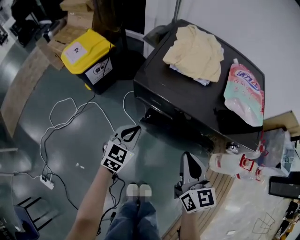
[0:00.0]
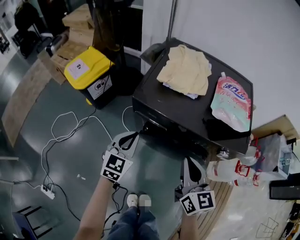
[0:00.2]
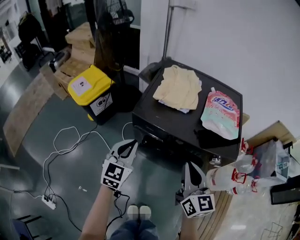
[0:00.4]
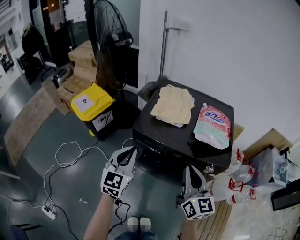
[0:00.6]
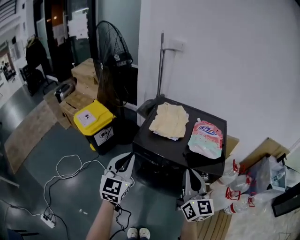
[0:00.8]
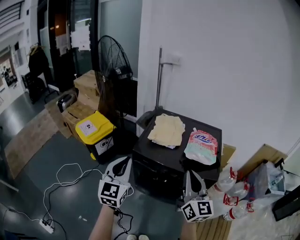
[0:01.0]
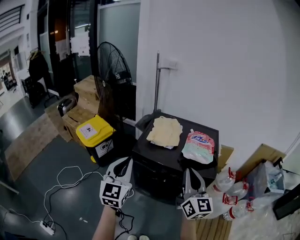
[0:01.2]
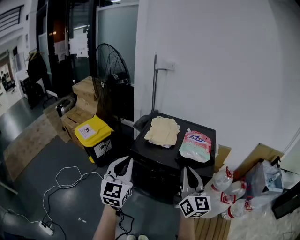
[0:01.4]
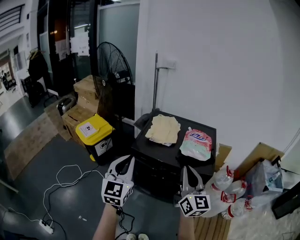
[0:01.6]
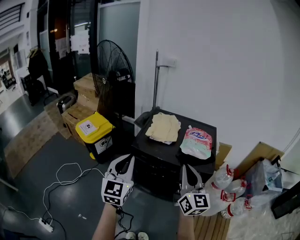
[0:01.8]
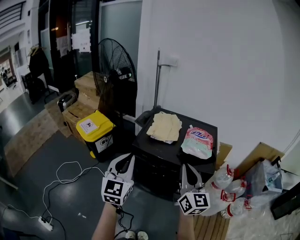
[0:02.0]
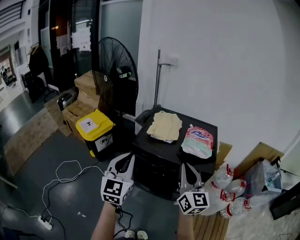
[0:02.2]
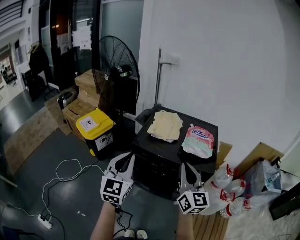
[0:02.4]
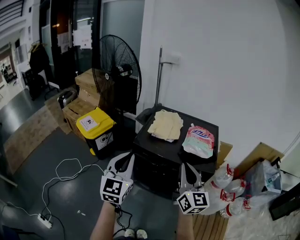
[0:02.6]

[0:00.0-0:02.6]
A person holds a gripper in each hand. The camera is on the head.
0:00.0 to 0:01.2: The two grippers go some 35 cm upward. The right gripper turns by approximately 30 degrees. Meanwhile the left gripper changes its angle by roughly 30 degrees.
0:01.2 to 0:02.6: The grippers move only a little.

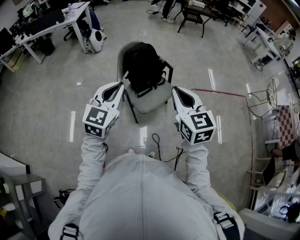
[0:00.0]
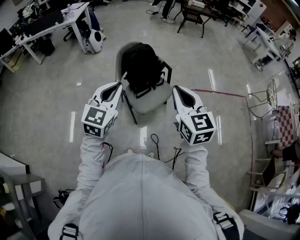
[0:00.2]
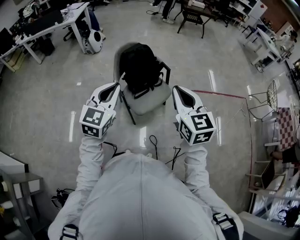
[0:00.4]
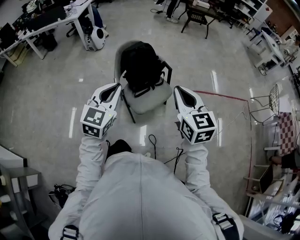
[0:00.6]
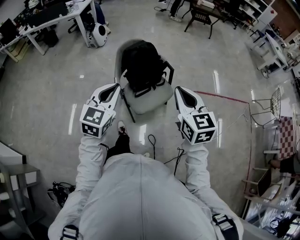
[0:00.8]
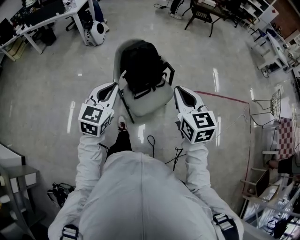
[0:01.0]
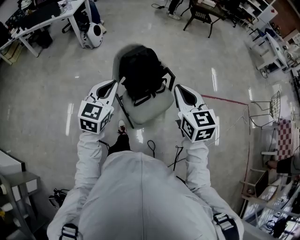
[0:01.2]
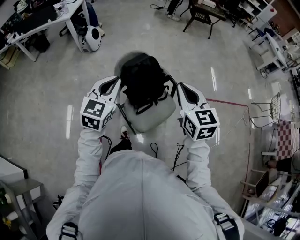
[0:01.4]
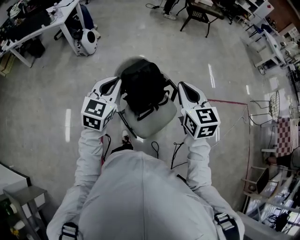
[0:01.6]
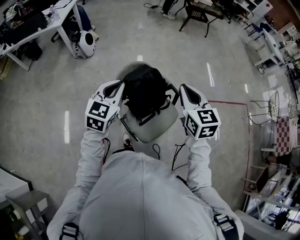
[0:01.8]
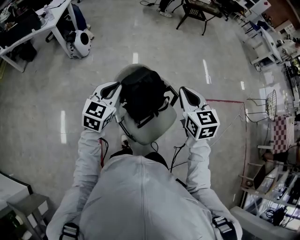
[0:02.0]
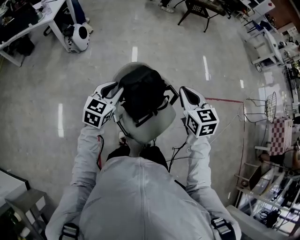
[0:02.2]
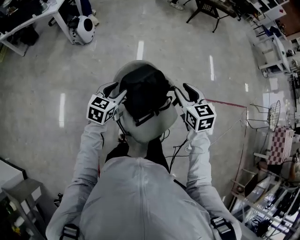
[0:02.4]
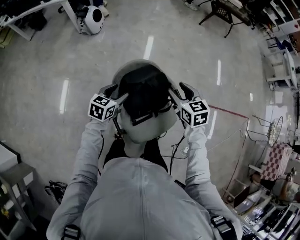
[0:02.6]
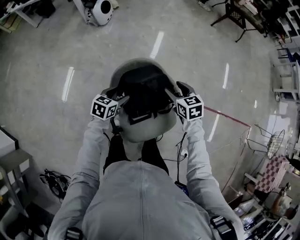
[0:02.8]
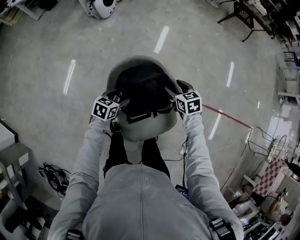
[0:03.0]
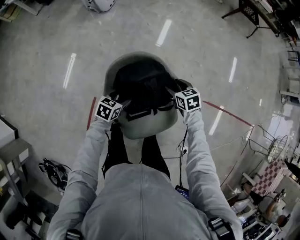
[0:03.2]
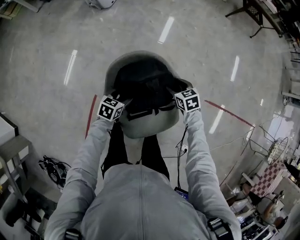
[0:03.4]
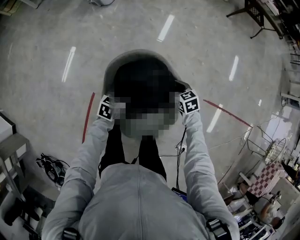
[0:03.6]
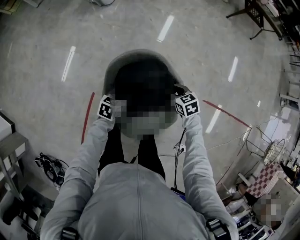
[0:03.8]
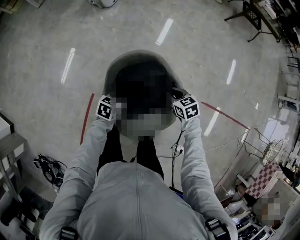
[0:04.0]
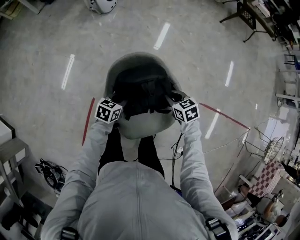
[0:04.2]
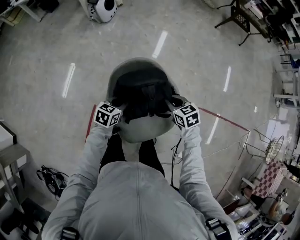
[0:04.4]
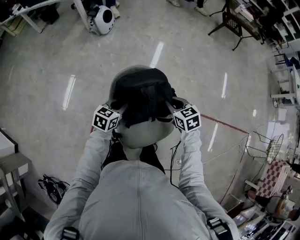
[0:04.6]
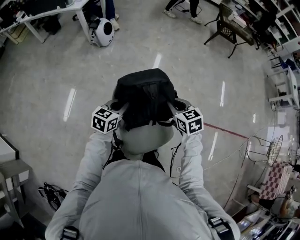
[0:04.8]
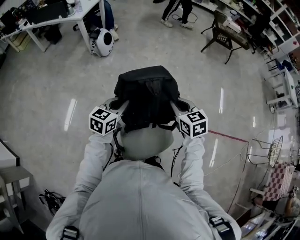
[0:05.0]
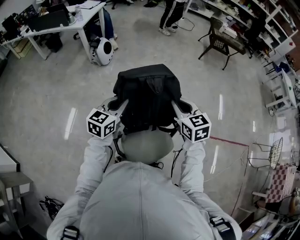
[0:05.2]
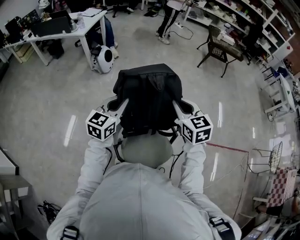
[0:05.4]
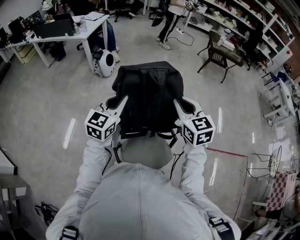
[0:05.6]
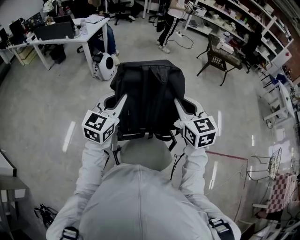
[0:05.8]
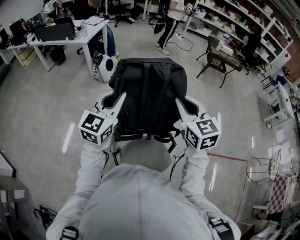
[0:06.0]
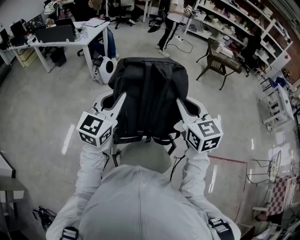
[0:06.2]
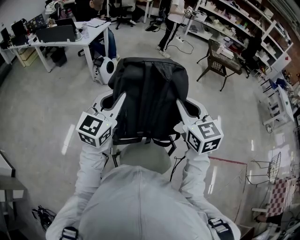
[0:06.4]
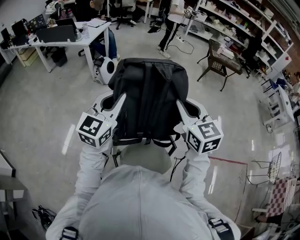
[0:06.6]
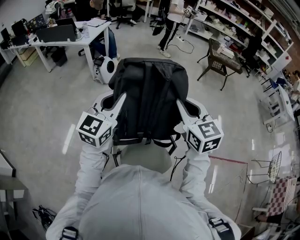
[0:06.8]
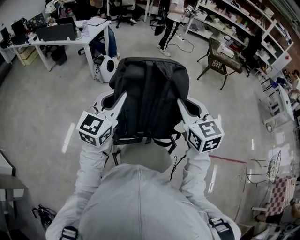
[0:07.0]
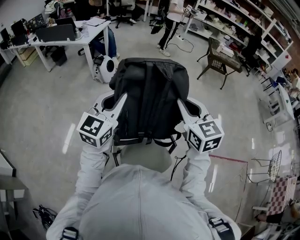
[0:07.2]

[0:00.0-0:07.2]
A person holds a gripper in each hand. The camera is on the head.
0:00.0 to 0:01.4: Both grippers move forward, about 20 cm.
0:01.4 to 0:02.8: Both grippers travel together downward and forward, roughly 35 cm. The left gripper swivels some 40 degrees, and opens its fingers. Meanwhile the right gripper changes its angle by some 30 degrees, and opens up.
0:02.8 to 0:04.4: The left gripper travels downward and back again, about 10 cm each way, and closes up; the right gripper reaches approximately 15 cm downward, then returns, and closes.
0:04.4 to 0:05.8: Both grippers move upward, approximately 35 cm. The right gripper angles its fingers upward, by roughly 30 degrees. Meanwhile the left gripper points its fingers roughly 40 degrees further upward.
0:05.8 to 0:07.2: The grippers make only small movements.

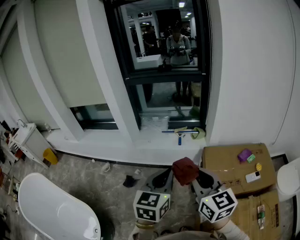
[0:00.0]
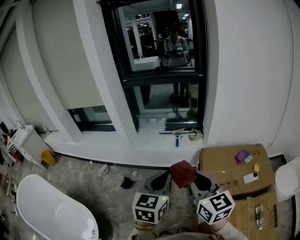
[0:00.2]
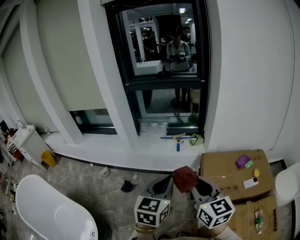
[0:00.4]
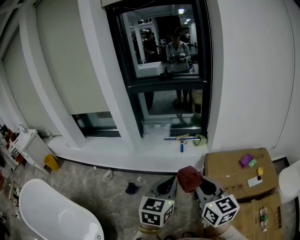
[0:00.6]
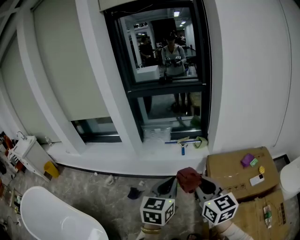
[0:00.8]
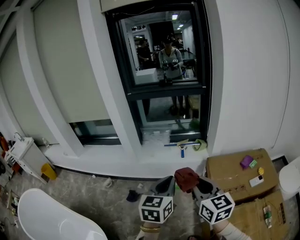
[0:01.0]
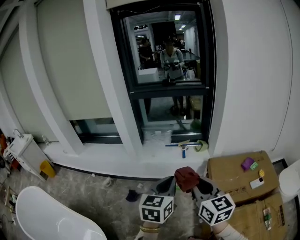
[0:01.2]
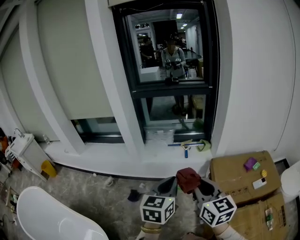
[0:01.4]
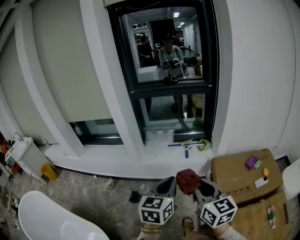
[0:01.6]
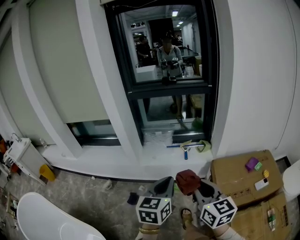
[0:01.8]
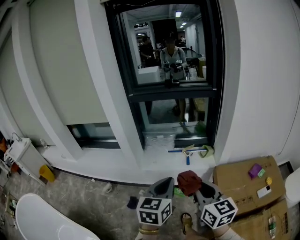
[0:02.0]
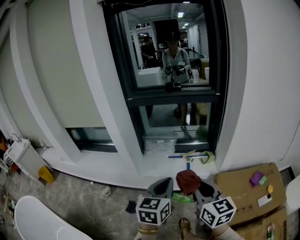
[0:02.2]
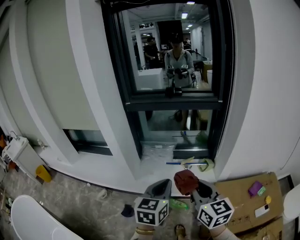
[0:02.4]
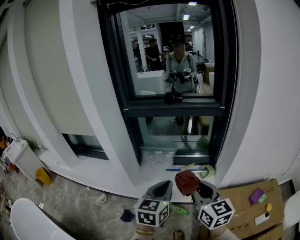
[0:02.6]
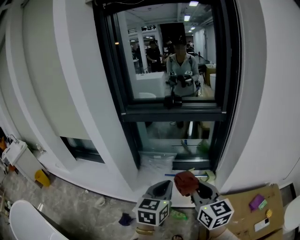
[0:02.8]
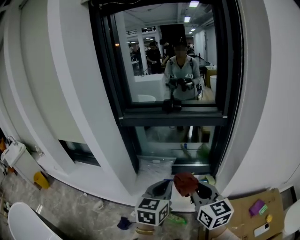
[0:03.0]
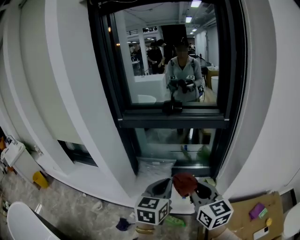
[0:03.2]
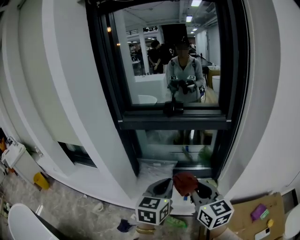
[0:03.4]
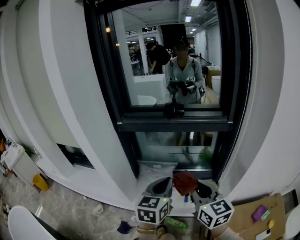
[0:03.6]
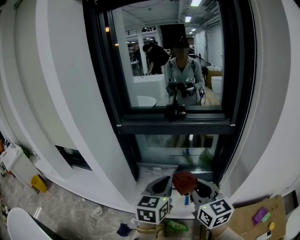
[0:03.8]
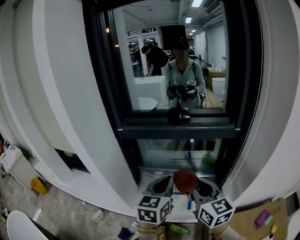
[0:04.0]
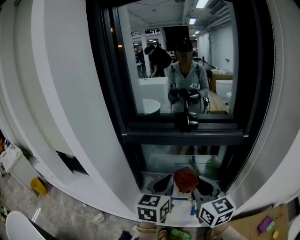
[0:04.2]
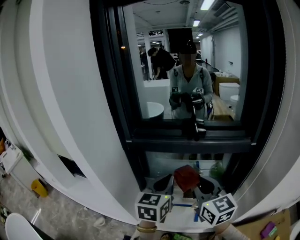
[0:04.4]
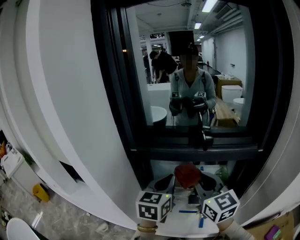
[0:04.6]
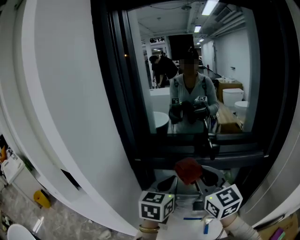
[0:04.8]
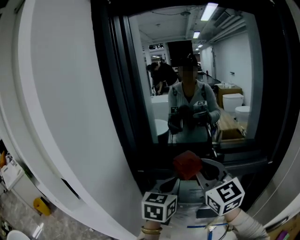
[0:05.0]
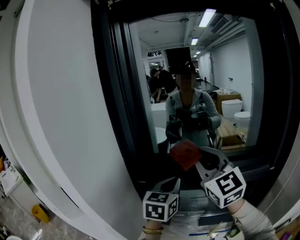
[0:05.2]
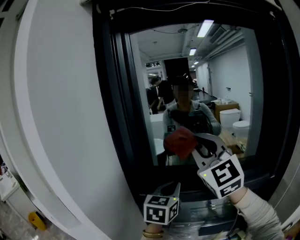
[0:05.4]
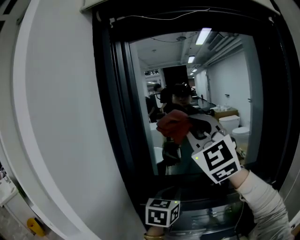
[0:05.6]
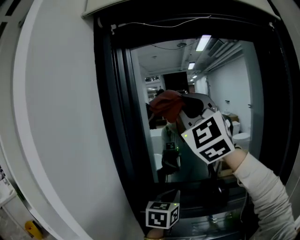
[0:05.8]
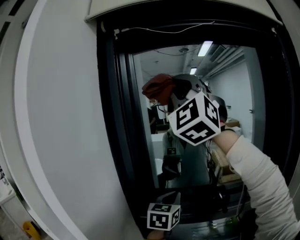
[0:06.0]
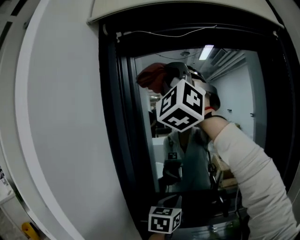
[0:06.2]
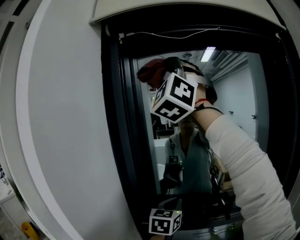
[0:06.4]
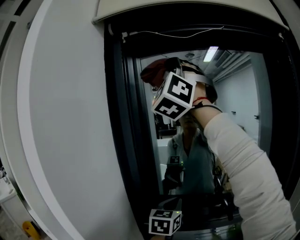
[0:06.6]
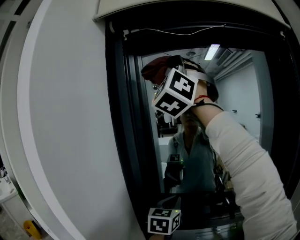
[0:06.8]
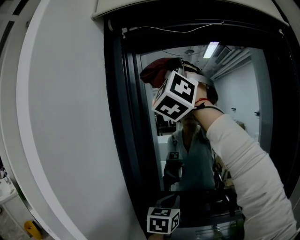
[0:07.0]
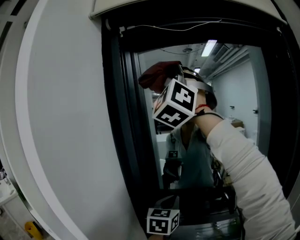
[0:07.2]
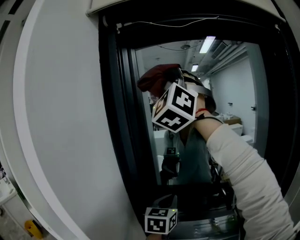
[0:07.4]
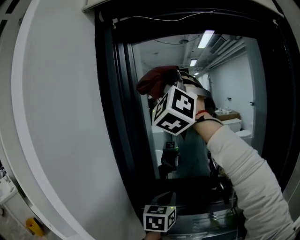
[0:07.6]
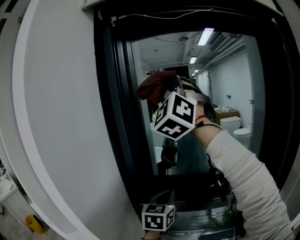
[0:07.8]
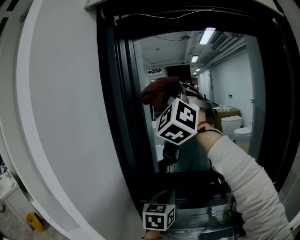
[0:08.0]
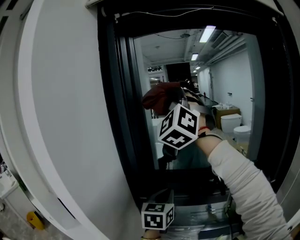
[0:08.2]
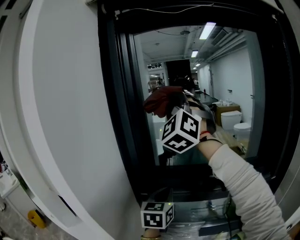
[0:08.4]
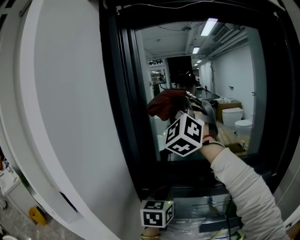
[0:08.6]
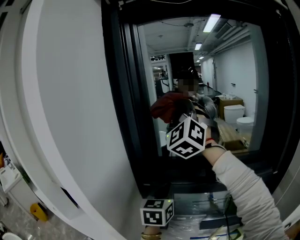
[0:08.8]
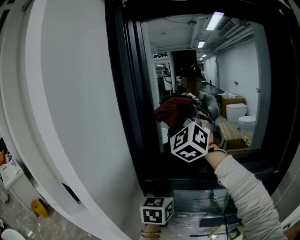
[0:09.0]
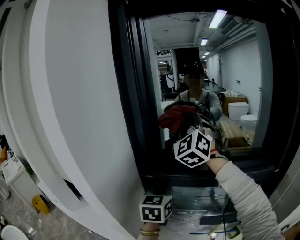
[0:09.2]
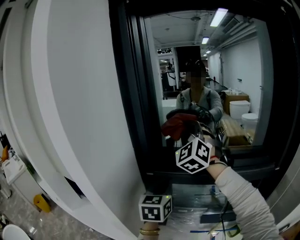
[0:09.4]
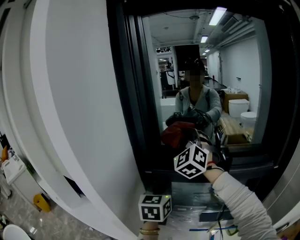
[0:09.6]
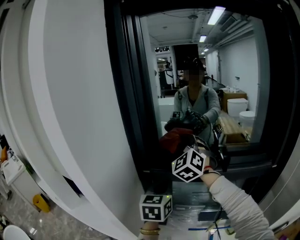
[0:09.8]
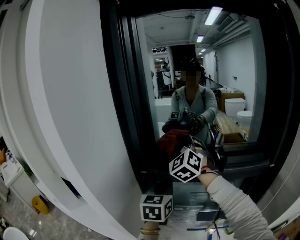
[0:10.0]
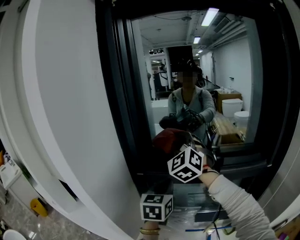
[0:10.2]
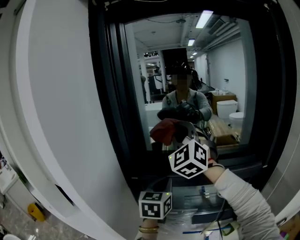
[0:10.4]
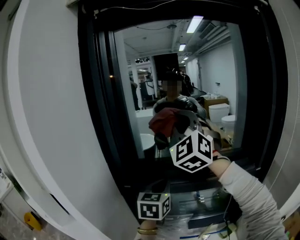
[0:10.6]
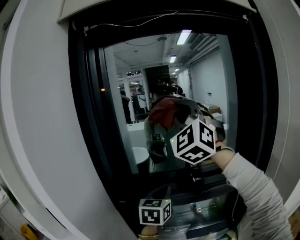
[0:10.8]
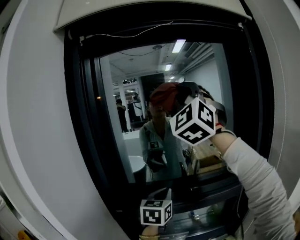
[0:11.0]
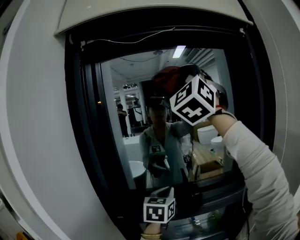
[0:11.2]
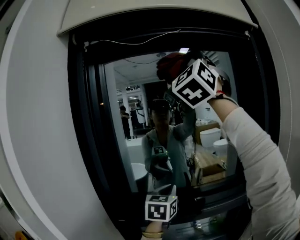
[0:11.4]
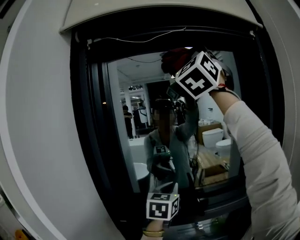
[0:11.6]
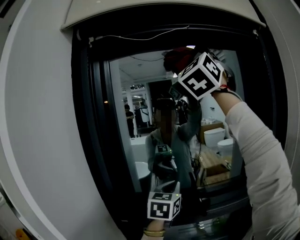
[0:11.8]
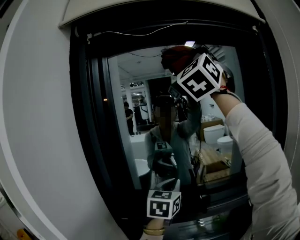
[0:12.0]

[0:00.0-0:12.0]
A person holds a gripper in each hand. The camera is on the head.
0:00.0 to 0:01.6: The right gripper travels to the left by some 10 cm. The left gripper shifts some 10 cm to the left and forward.
0:01.6 to 0:03.0: The grippers both shift forward by approximately 35 cm.
0:03.0 to 0:04.4: The two grippers go some 20 cm forward.
0:04.4 to 0:06.0: The left gripper moves forward and upward, some 25 cm. The right gripper heads upward and forward, covering some 60 cm, and rotates around the line of its fingers by roughly 70 degrees, counterclockwise from behind.
0:06.0 to 0:07.6: The right gripper goes upward and returns, approximately 10 cm each way.
0:07.6 to 0:09.0: The left gripper travels backward by about 5 cm; the right gripper is displaced downward by roughly 20 cm.
0:09.0 to 0:10.4: The right gripper travels downward by some 5 cm; the left gripper goes roughly 5 cm to the right.
0:10.4 to 0:12.0: The left gripper is displaced upward, forward and to the right by approximately 20 cm; the right gripper travels upward by roughly 40 cm, and rotates some 40 degrees.

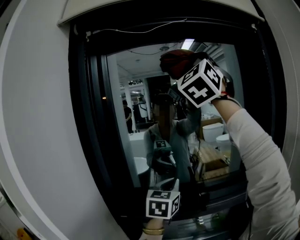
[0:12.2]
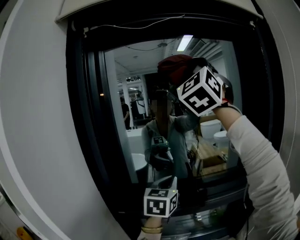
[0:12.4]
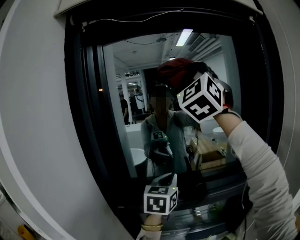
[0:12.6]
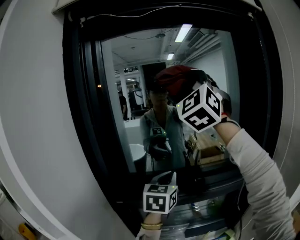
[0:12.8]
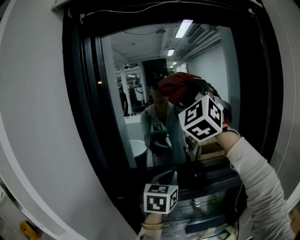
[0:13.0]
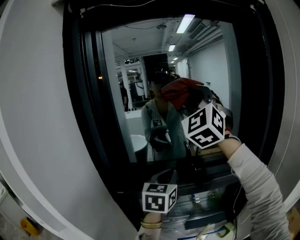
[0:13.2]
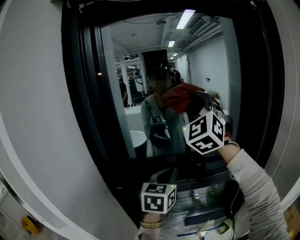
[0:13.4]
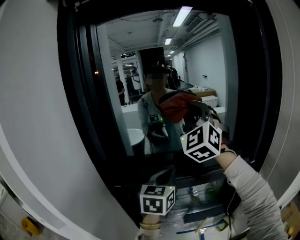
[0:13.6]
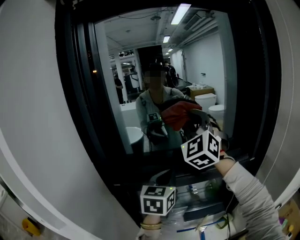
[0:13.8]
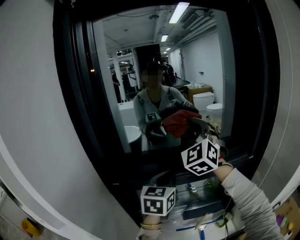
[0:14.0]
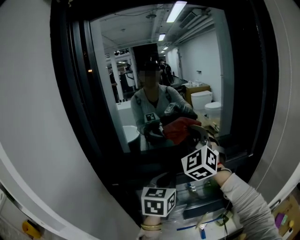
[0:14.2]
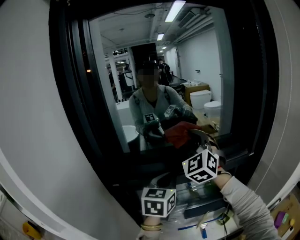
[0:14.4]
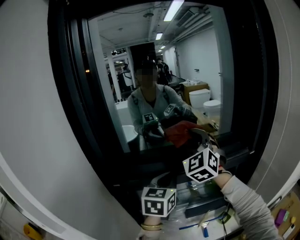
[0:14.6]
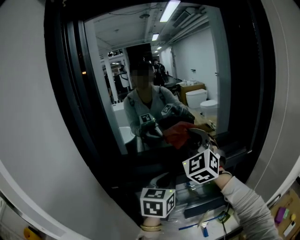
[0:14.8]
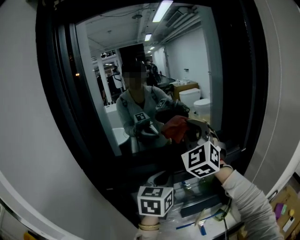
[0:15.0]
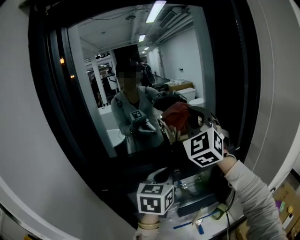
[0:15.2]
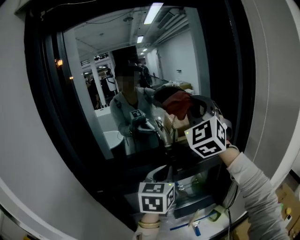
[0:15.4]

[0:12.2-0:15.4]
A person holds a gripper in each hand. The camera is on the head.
0:12.2 to 0:13.8: The left gripper moves downward and backward, approximately 10 cm. Meanwhile the right gripper moves downward, about 30 cm, and rotates roughly 20 degrees.
0:13.8 to 0:15.4: The left gripper heads to the right, covering some 10 cm. The right gripper shifts about 10 cm to the right, and goes downward and returns, roughly 10 cm each way.
